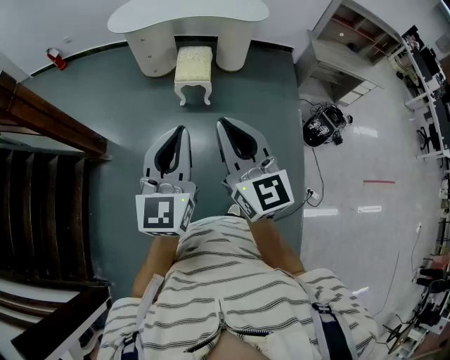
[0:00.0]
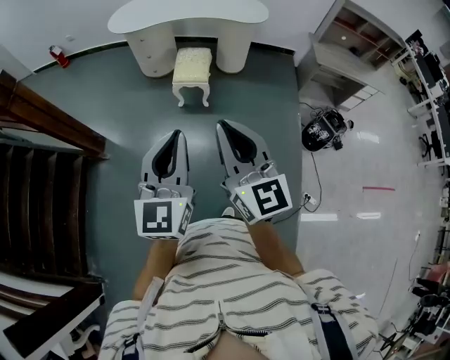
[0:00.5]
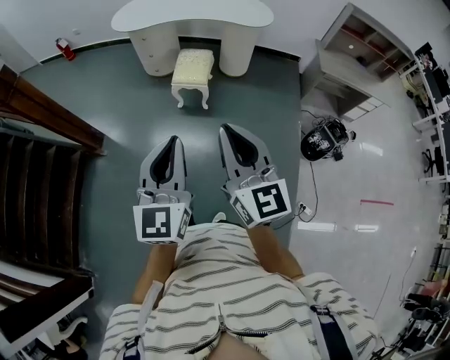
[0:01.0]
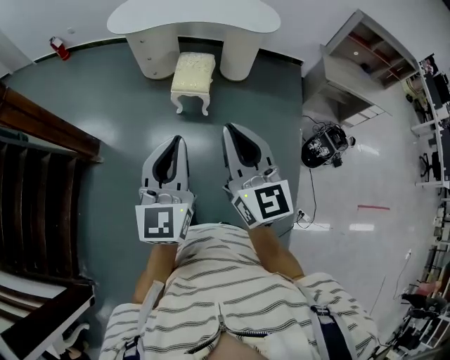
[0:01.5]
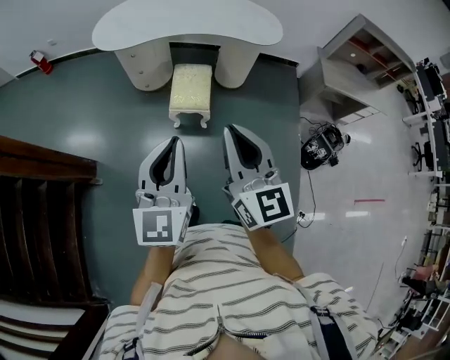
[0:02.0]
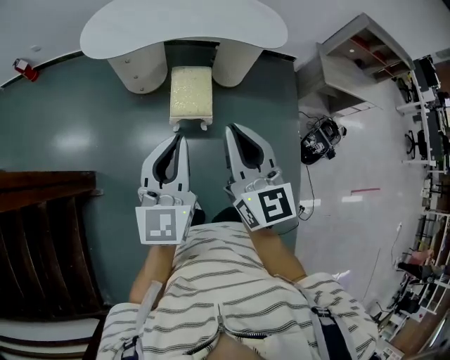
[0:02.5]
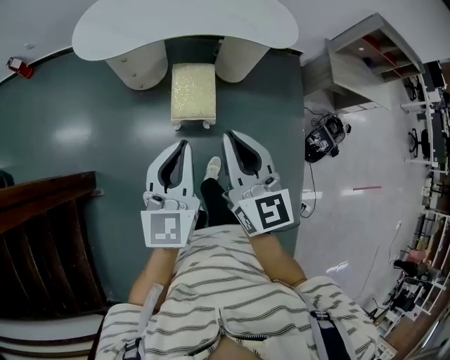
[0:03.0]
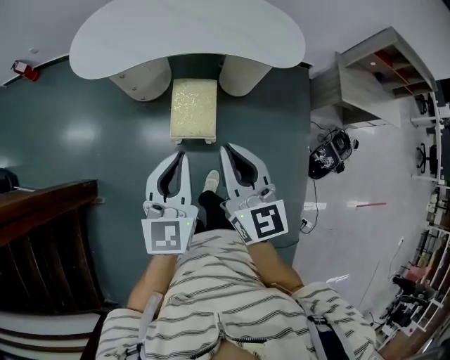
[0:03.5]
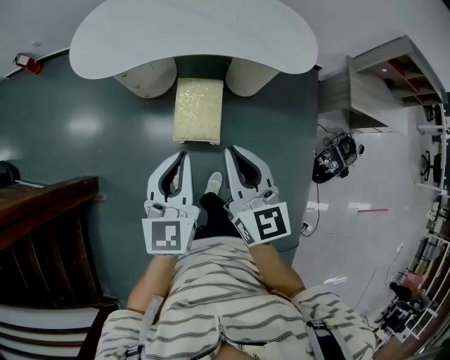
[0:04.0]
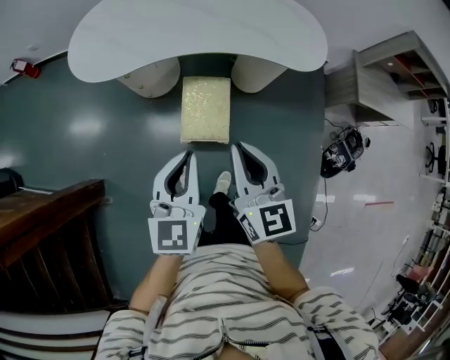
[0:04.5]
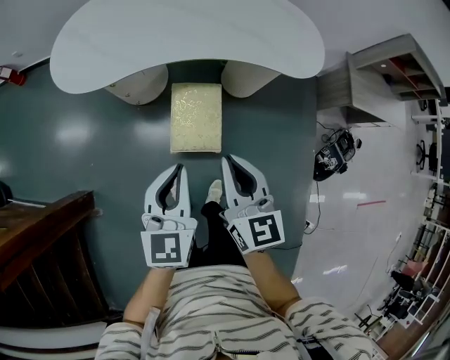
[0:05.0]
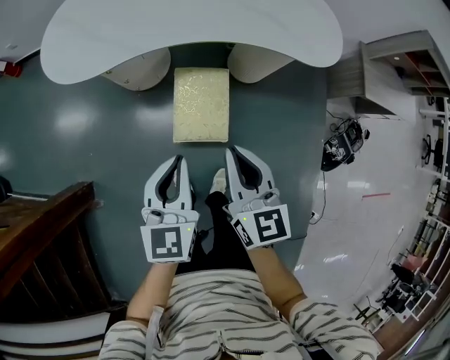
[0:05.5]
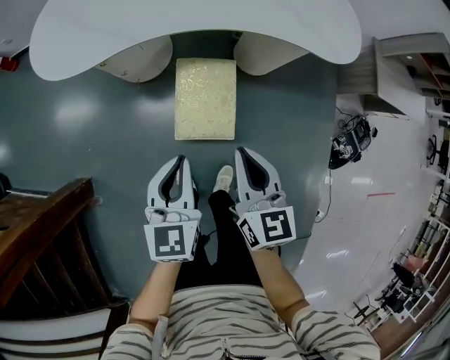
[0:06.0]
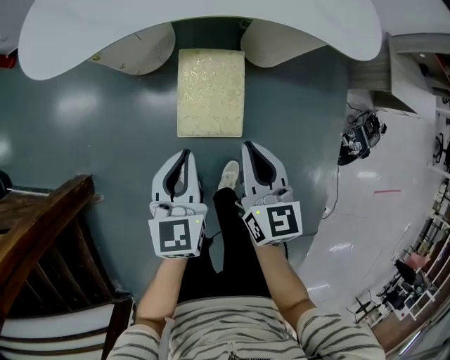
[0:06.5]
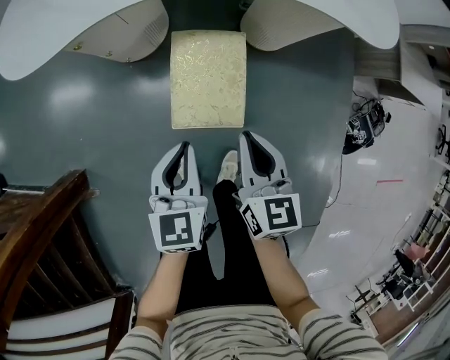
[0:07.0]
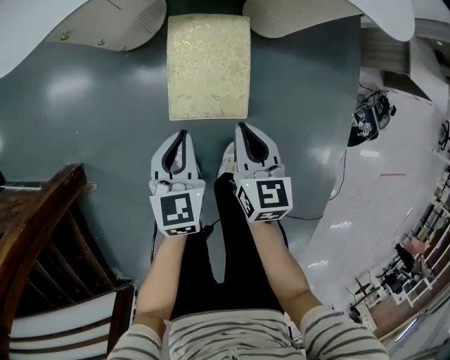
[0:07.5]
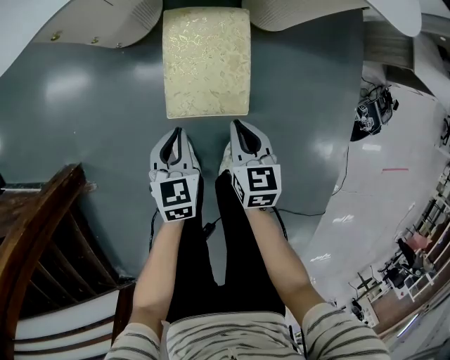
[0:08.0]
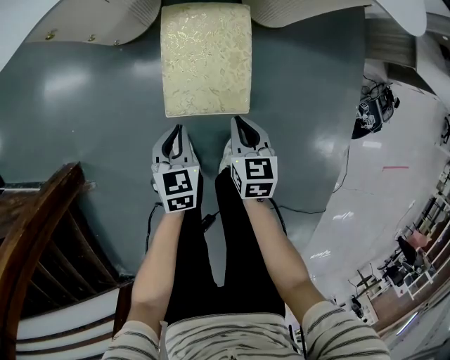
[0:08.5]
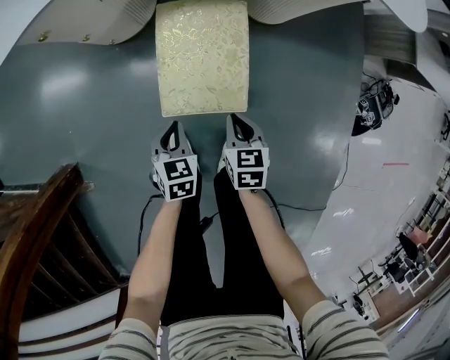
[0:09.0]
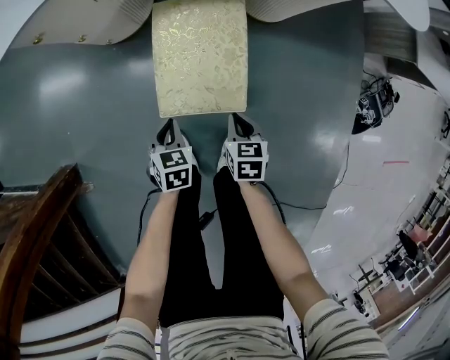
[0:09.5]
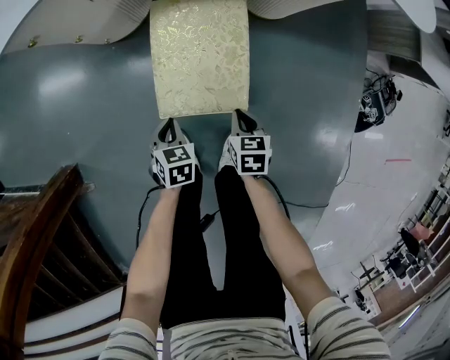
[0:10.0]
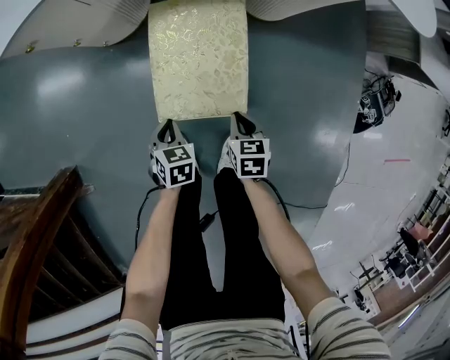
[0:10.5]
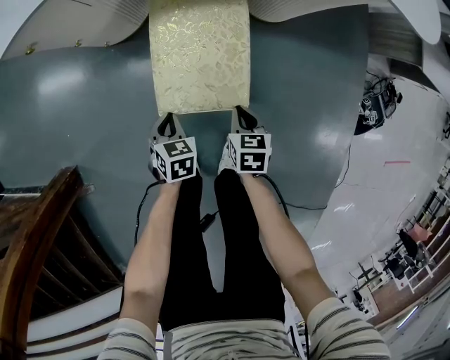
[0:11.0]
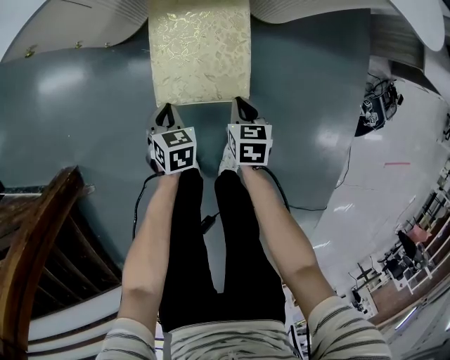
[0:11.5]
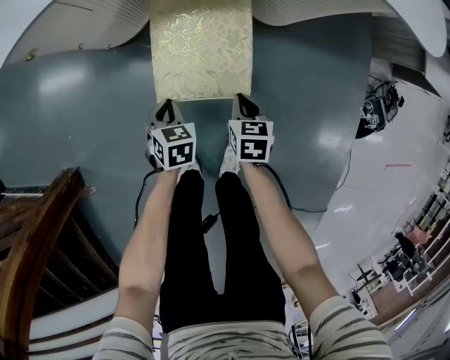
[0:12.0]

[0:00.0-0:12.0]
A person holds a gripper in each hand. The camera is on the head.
0:00.0 to 0:02.0: The grippers both shift forward by some 30 cm.
0:02.0 to 0:04.0: The grippers both shift forward and downward by some 35 cm.
0:04.0 to 0:06.0: Both grippers move downward, roughly 25 cm.
0:06.0 to 0:08.0: The grippers both shift downward by approximately 30 cm.
0:08.0 to 0:10.0: The two grippers go roughly 15 cm downward.
0:10.0 to 0:12.0: The grippers make only small movements.

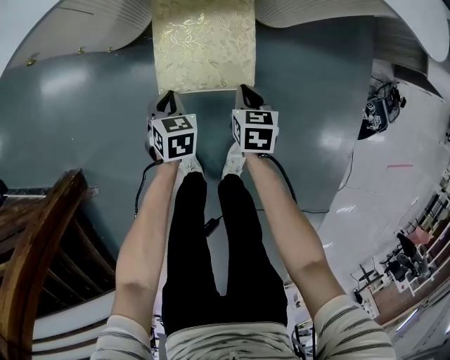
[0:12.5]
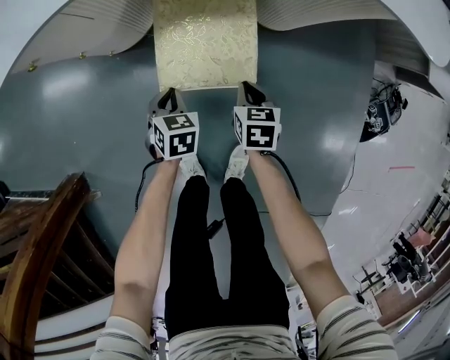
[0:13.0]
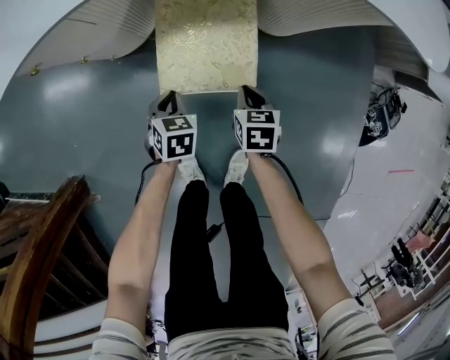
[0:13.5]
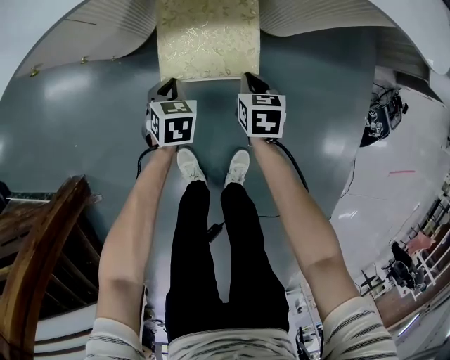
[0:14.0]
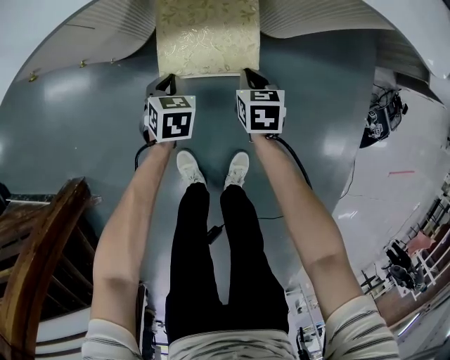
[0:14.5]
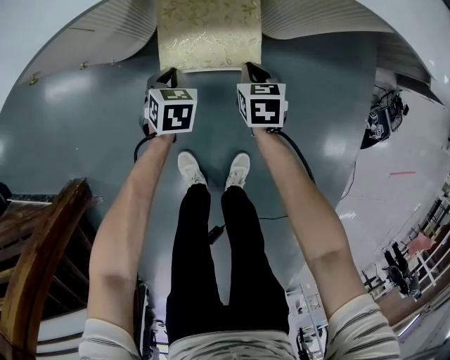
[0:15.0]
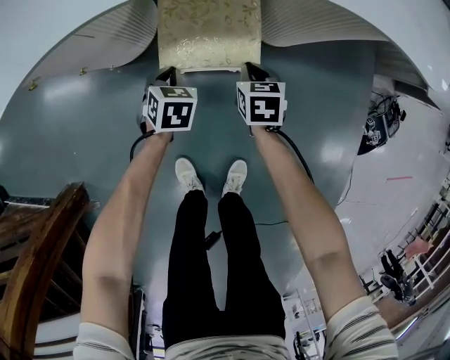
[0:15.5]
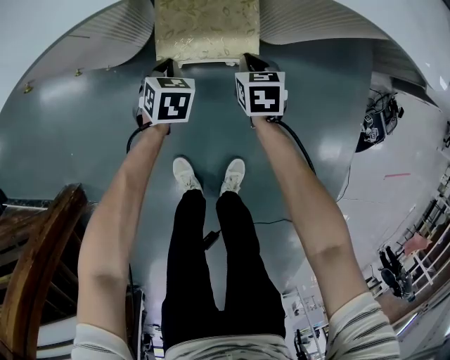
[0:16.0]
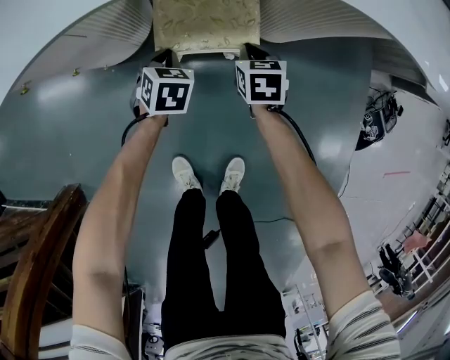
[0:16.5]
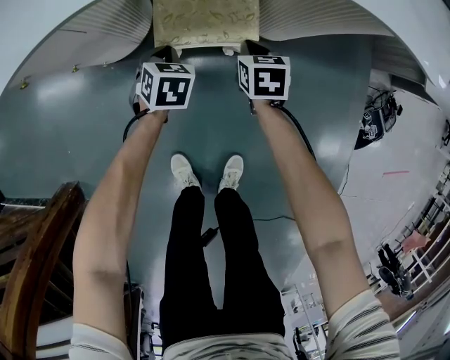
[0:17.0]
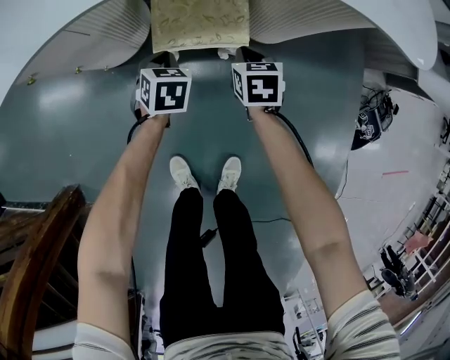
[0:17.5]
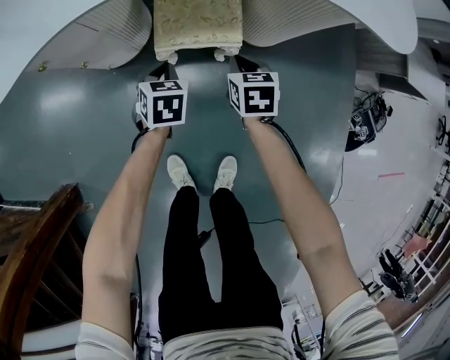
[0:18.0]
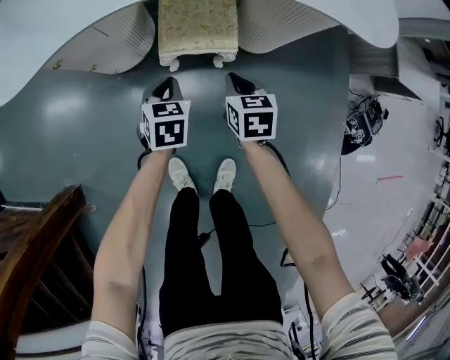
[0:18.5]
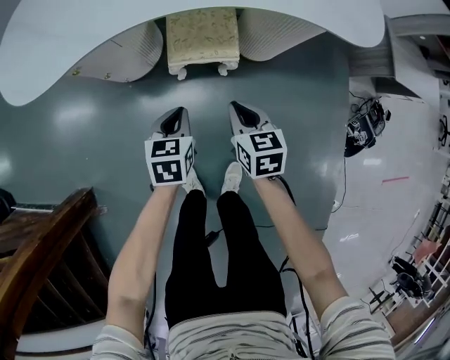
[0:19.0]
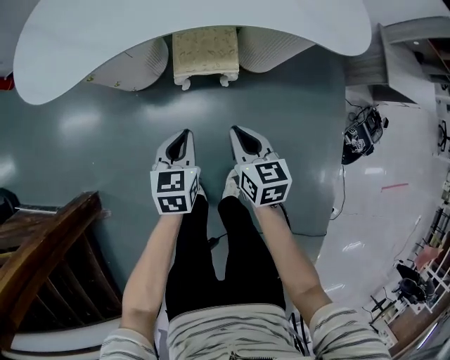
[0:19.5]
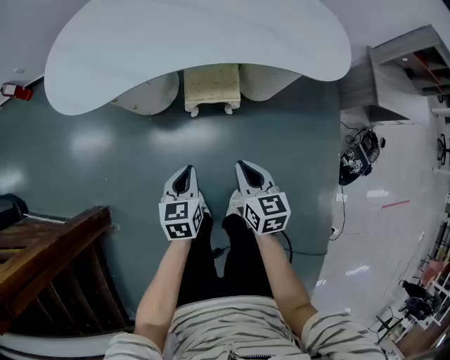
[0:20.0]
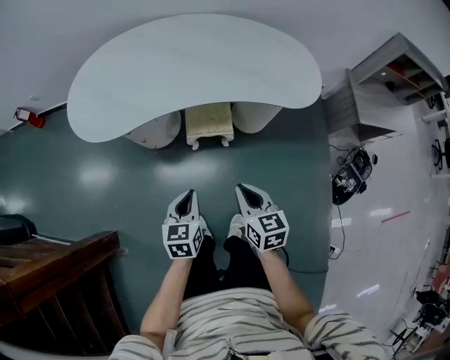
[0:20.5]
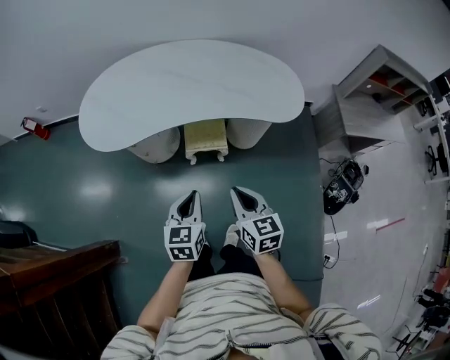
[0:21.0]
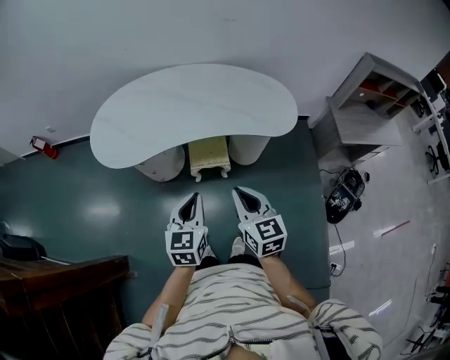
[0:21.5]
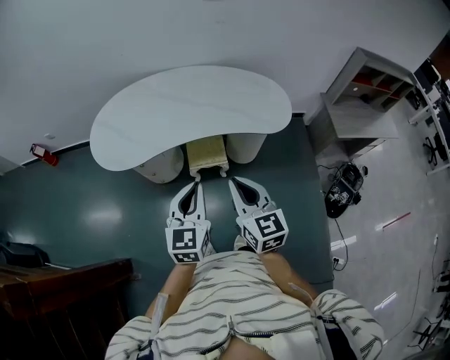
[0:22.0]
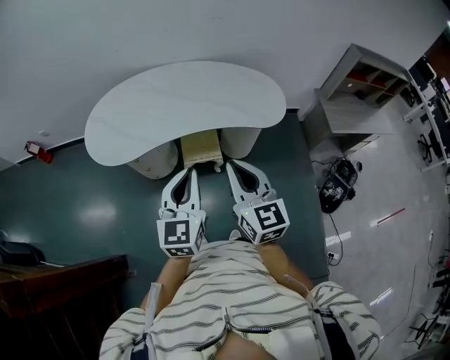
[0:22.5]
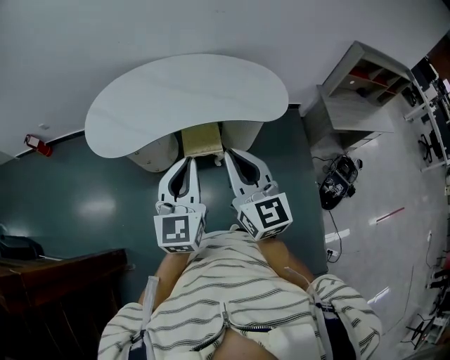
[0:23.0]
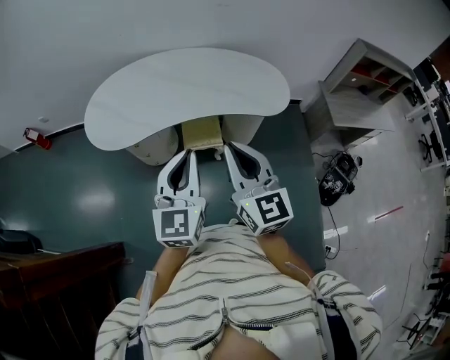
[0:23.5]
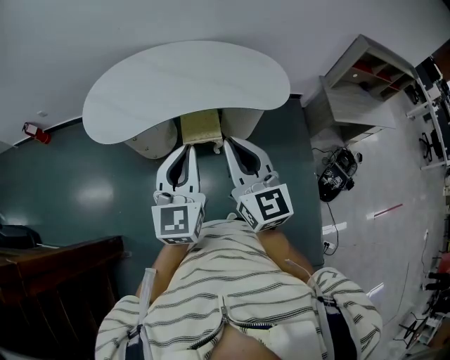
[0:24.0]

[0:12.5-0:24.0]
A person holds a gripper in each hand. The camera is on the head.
0:12.5 to 0:14.5: The grippers both shift forward by approximately 15 cm.
0:14.5 to 0:16.5: The grippers both shift forward by approximately 10 cm.
0:16.5 to 0:18.5: Both grippers travel together upward and backward, about 20 cm.
0:18.5 to 0:20.0: Both grippers travel together upward and backward, about 25 cm.
0:20.0 to 0:22.0: Both grippers travel together upward, roughly 40 cm. The right gripper turns by some 30 degrees. Meanwhile the left gripper turns by about 30 degrees.
0:22.0 to 0:24.0: The two grippers go roughly 5 cm upward.

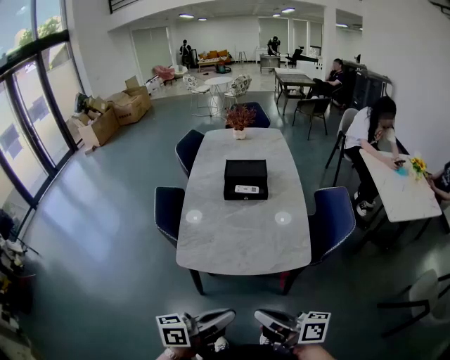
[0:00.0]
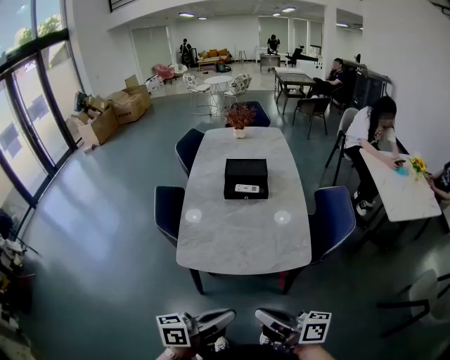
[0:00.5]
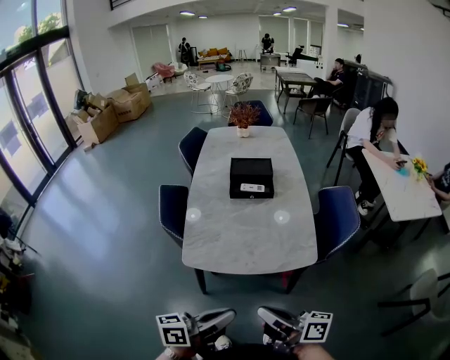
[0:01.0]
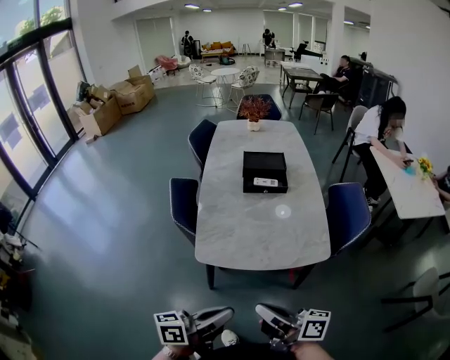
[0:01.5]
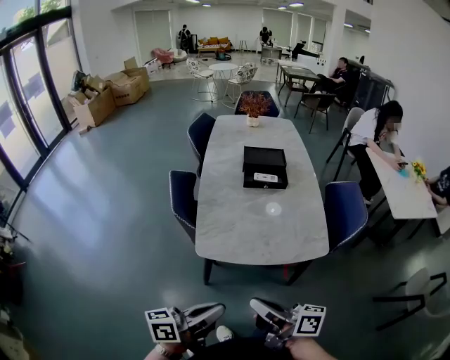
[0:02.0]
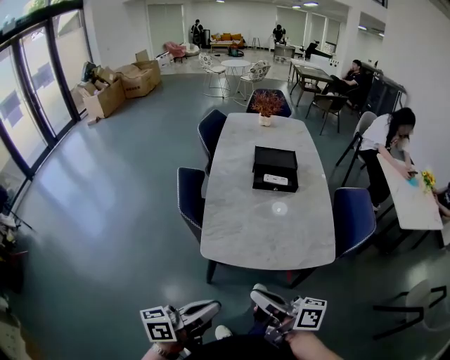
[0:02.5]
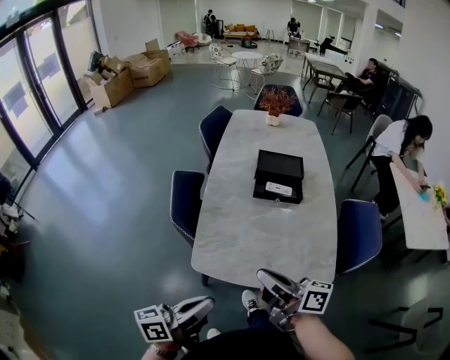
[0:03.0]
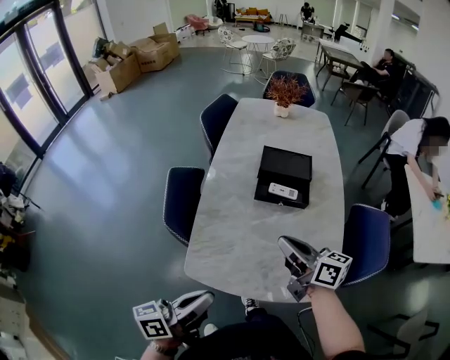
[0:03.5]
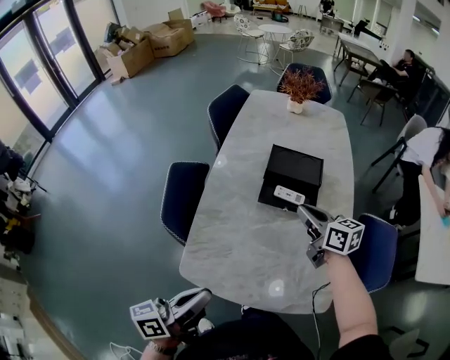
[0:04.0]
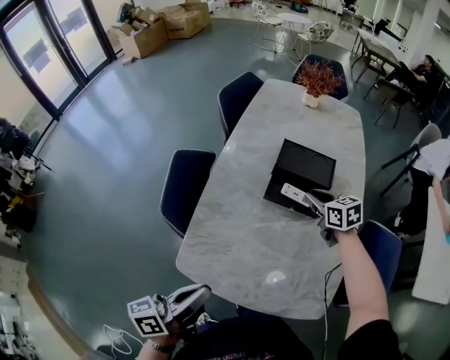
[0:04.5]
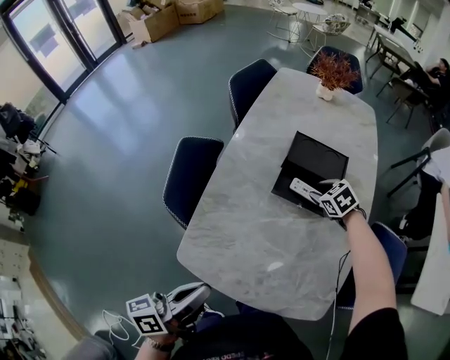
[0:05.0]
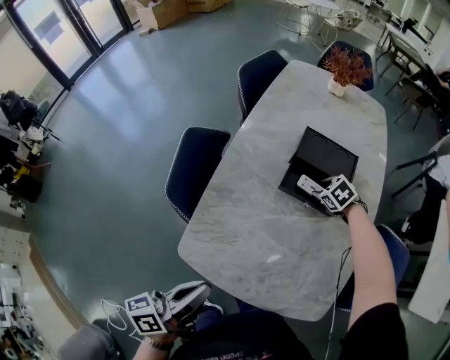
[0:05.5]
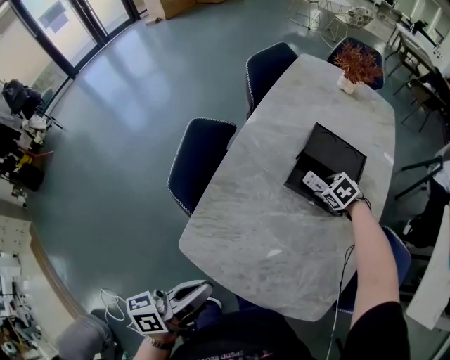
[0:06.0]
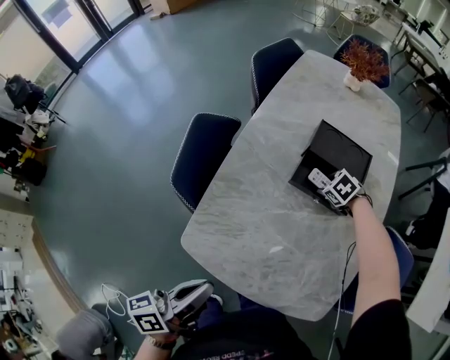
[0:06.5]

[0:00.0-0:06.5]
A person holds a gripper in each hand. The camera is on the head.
0:00.0 to 0:02.0: Both grippers travel together to the left, approximately 15 cm.
0:02.0 to 0:04.5: The left gripper heads forward, covering about 25 cm, and swivels about 30 degrees. Meanwhile the right gripper moves forward, some 60 cm, and tilts its fingers about 40 degrees downward.
0:04.5 to 0:06.5: The right gripper heads downward, covering some 15 cm, points its fingers approximately 40 degrees further downward, and opens.
